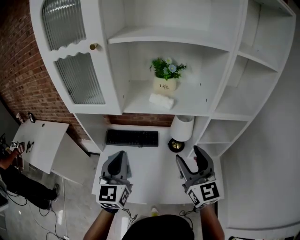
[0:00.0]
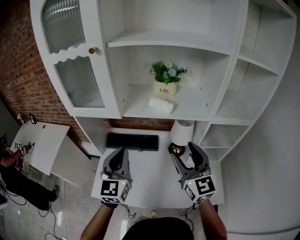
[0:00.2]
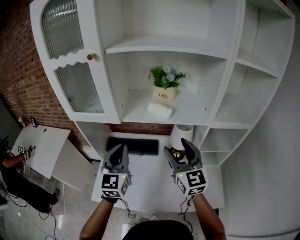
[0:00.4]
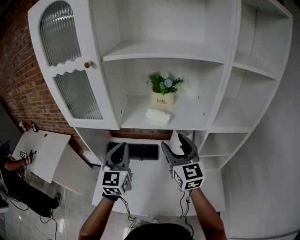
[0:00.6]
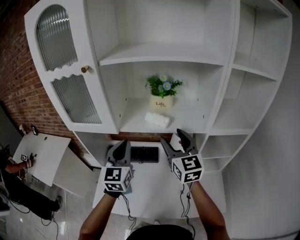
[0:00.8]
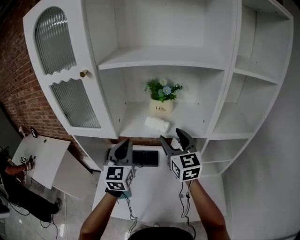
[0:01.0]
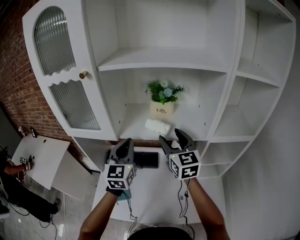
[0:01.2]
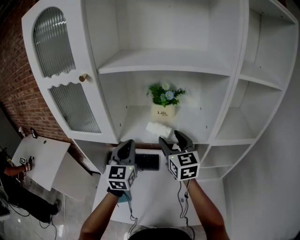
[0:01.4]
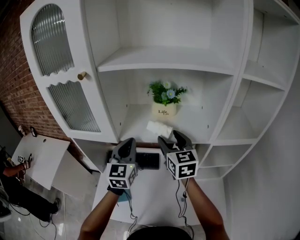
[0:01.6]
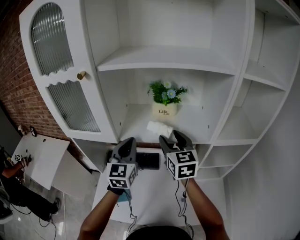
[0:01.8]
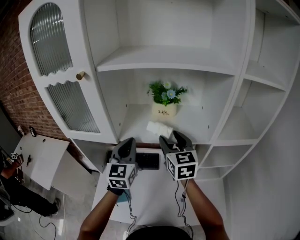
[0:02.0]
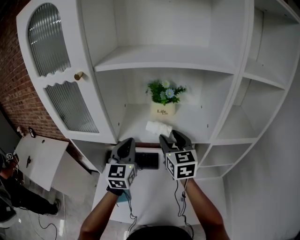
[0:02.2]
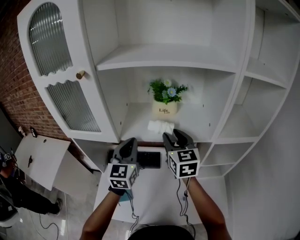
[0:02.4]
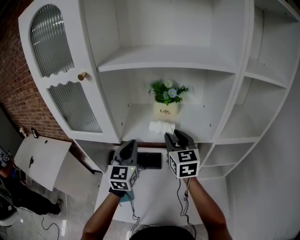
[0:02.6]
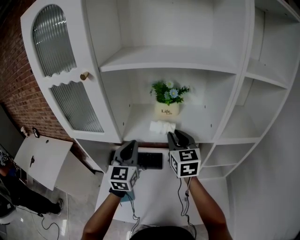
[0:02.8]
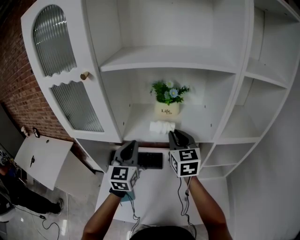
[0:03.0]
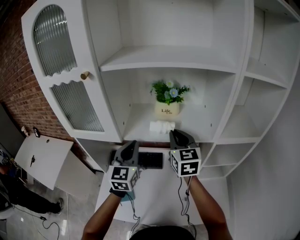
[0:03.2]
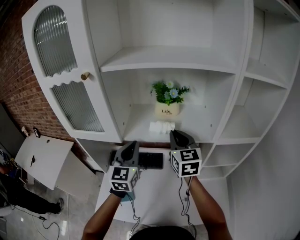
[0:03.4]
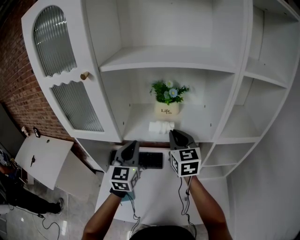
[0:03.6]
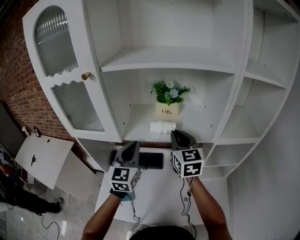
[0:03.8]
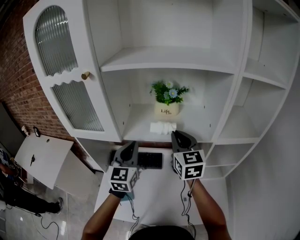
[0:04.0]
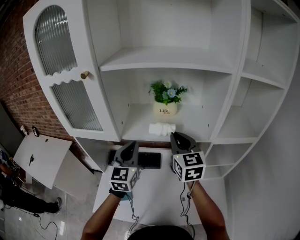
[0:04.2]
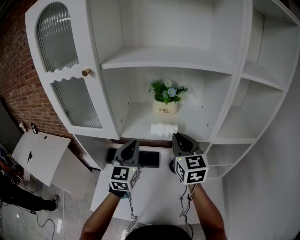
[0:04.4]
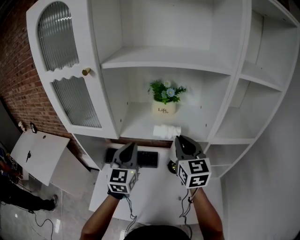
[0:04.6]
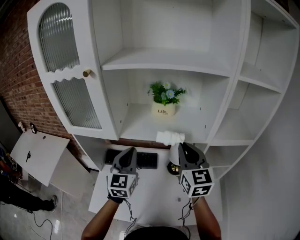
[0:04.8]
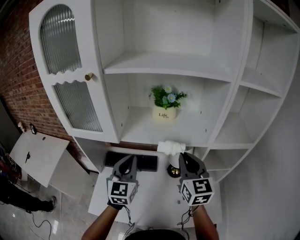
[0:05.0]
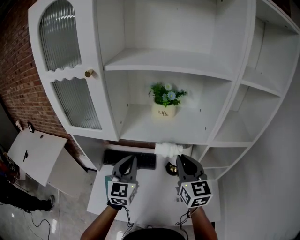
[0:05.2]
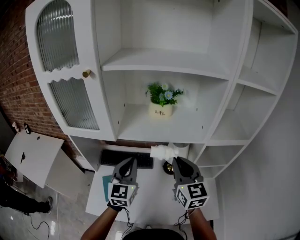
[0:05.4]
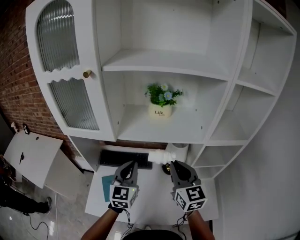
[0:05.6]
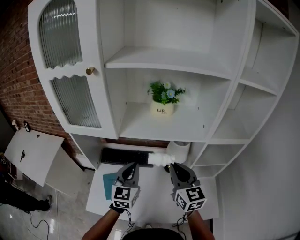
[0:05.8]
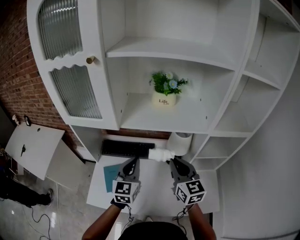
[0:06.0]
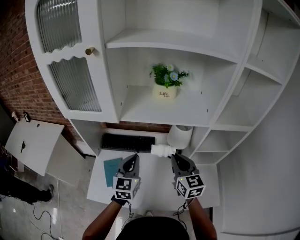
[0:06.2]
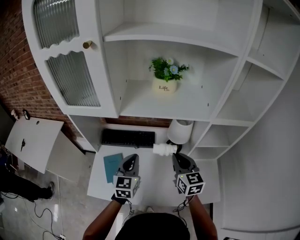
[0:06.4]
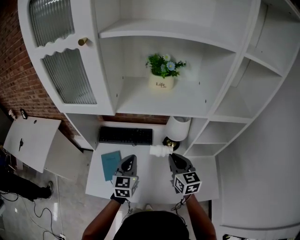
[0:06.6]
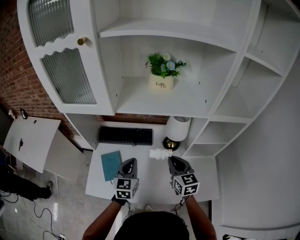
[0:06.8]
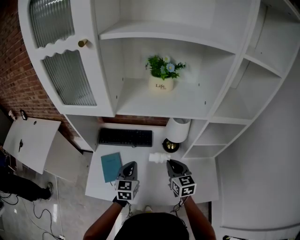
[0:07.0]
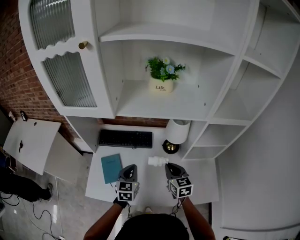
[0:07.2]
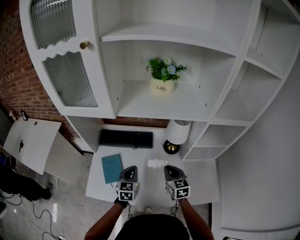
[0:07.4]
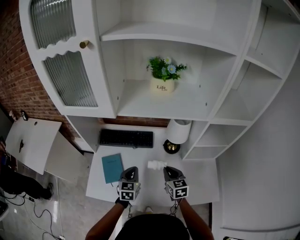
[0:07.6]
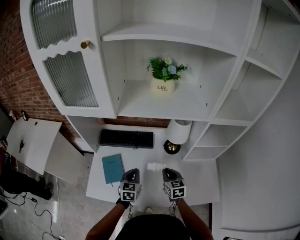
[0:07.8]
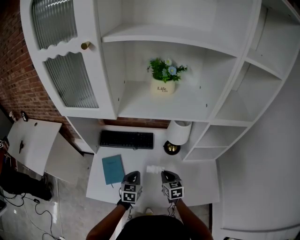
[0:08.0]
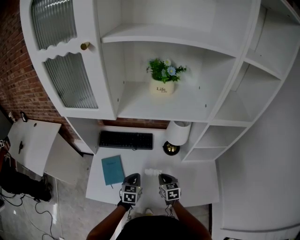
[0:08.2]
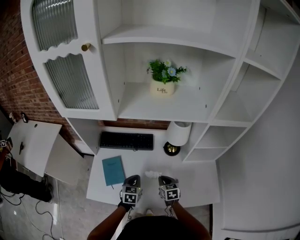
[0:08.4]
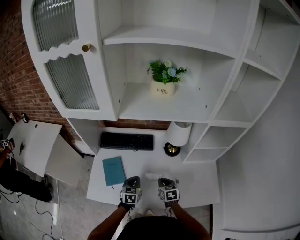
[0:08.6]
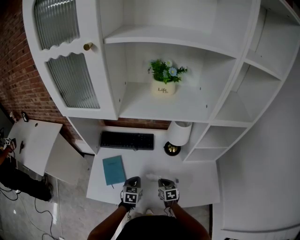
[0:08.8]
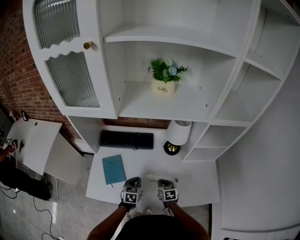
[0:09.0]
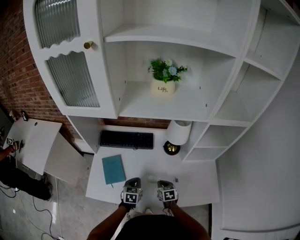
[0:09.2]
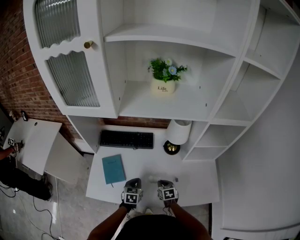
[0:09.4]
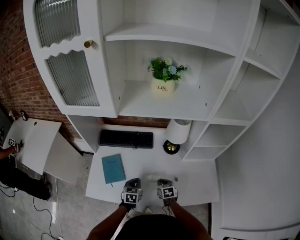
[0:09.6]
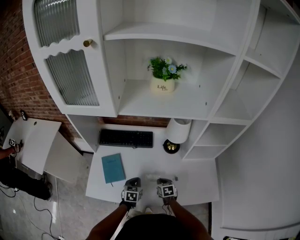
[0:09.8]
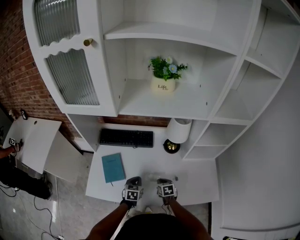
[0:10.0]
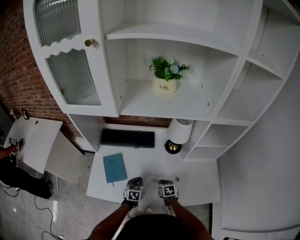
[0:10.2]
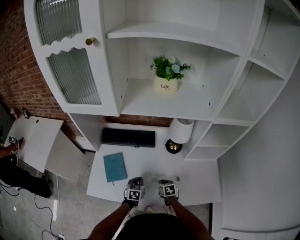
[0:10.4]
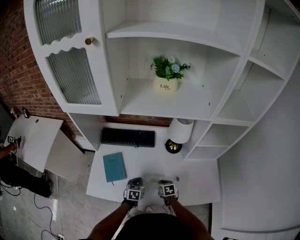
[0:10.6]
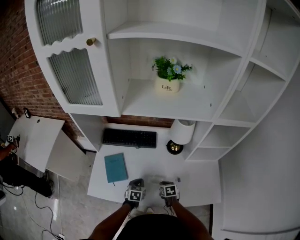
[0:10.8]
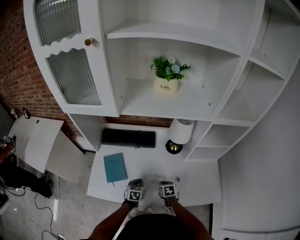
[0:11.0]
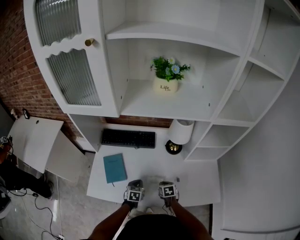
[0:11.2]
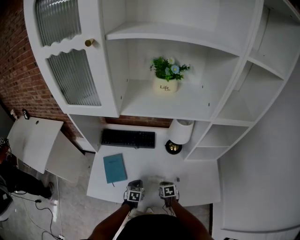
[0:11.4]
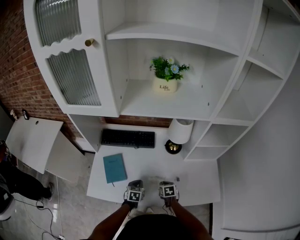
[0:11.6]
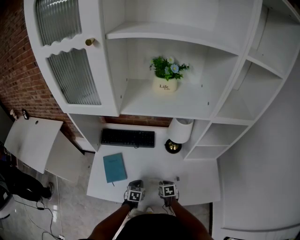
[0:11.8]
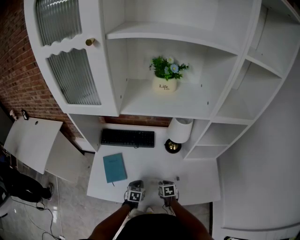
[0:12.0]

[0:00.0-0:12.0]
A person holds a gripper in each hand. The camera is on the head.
0:00.0 to 0:01.6: The grippers both shift forward by roughly 20 cm.
0:01.6 to 0:03.0: The right gripper closes.
0:03.0 to 0:04.4: The grippers stay close to where they were, moving slightly.
0:04.4 to 0:06.0: The grippers both shift downward and backward by roughly 15 cm.
0:06.0 to 0:07.6: The grippers both shift downward by roughly 20 cm. The right gripper rotates roughly 20 degrees.
0:07.6 to 0:09.0: Both grippers move downward, some 10 cm.
0:09.0 to 0:10.4: The right gripper is displaced downward by about 5 cm.
0:10.4 to 0:12.0: The grippers stay close to where they were, moving slightly.

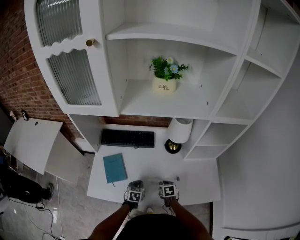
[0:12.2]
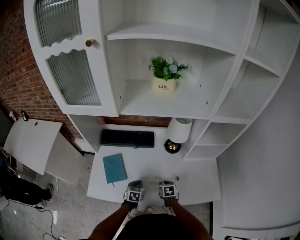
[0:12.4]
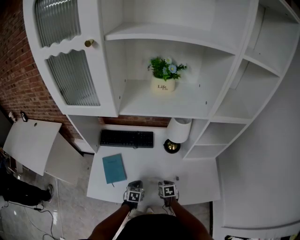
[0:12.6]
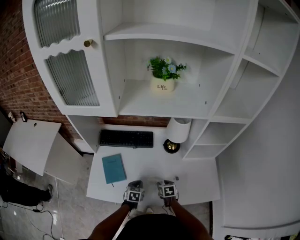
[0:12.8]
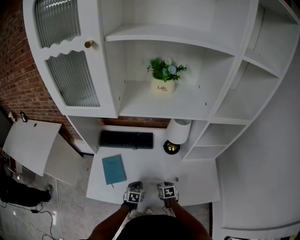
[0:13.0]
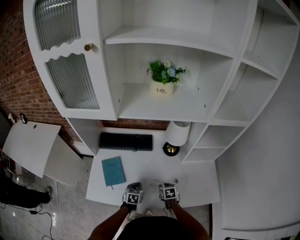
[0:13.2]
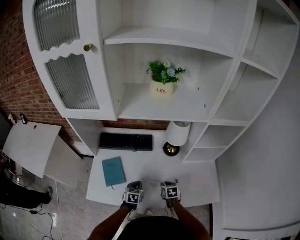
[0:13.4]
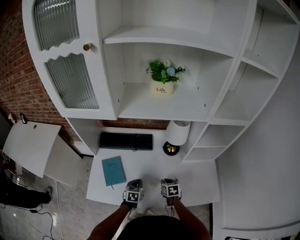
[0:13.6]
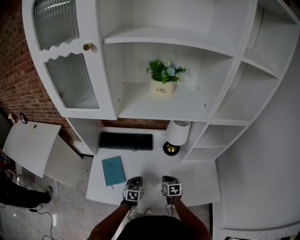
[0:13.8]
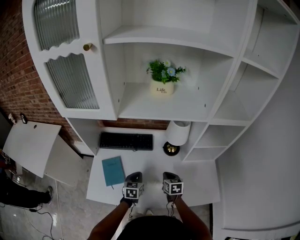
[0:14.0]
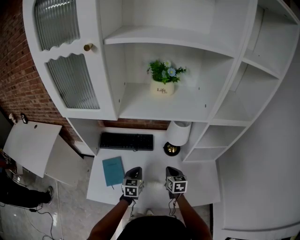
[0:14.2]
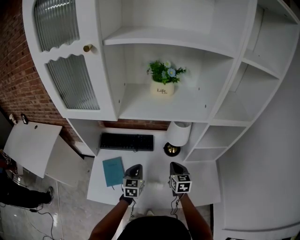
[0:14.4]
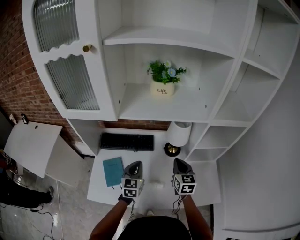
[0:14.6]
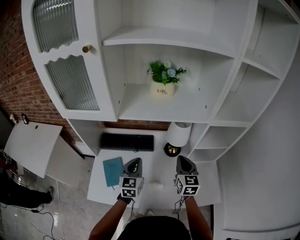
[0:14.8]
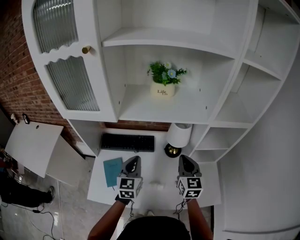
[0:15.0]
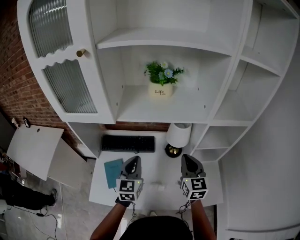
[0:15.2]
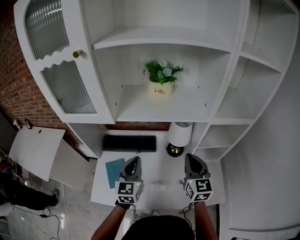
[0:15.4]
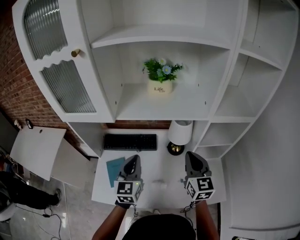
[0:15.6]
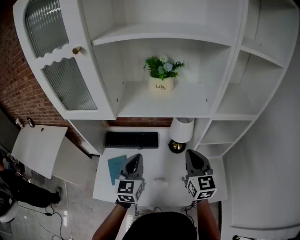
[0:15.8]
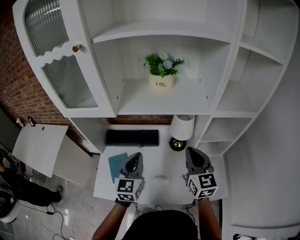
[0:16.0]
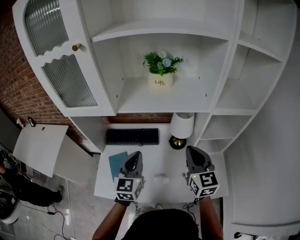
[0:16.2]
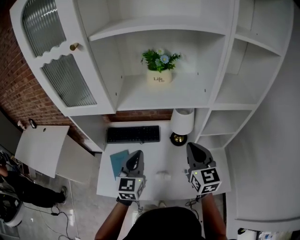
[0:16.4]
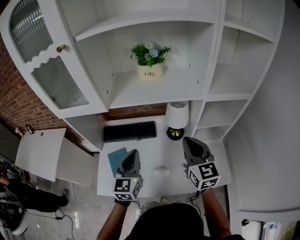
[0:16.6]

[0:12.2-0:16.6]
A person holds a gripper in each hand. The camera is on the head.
0:12.2 to 0:13.6: The right gripper shifts by about 5 cm, and opens, then closes again.
0:13.6 to 0:15.2: Both grippers travel together upward, about 30 cm. The left gripper tilts its fingers about 30 degrees upward, while the right gripper angles its fingers upward, by approximately 40 degrees.
0:15.2 to 0:16.6: The right gripper changes place by some 5 cm. The left gripper changes place by roughly 5 cm.

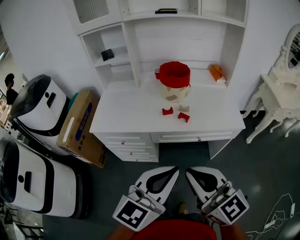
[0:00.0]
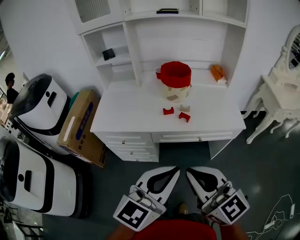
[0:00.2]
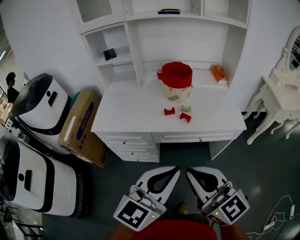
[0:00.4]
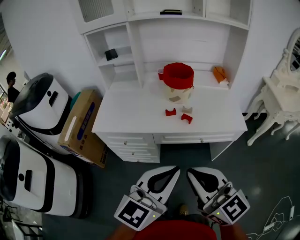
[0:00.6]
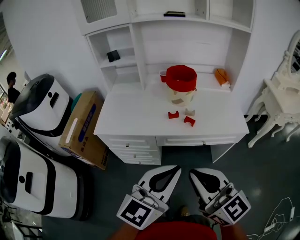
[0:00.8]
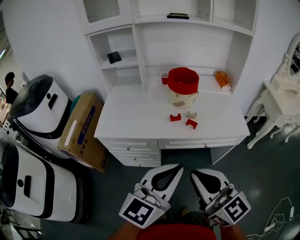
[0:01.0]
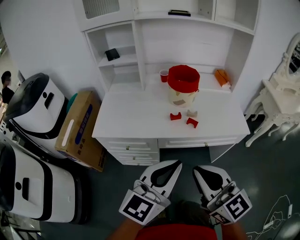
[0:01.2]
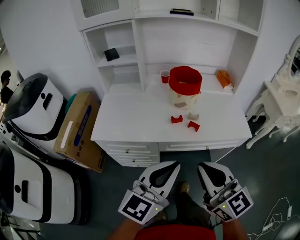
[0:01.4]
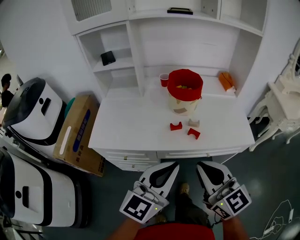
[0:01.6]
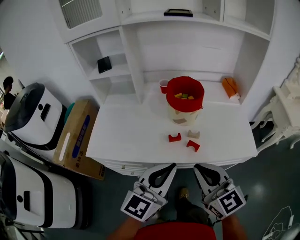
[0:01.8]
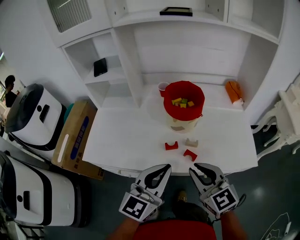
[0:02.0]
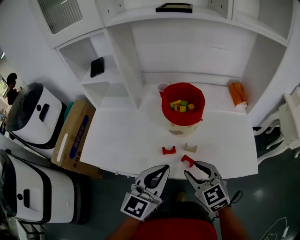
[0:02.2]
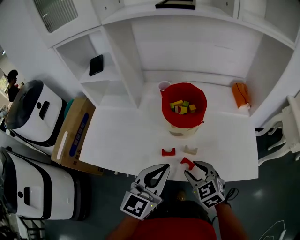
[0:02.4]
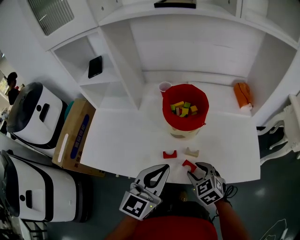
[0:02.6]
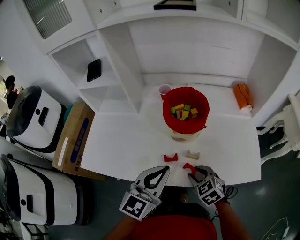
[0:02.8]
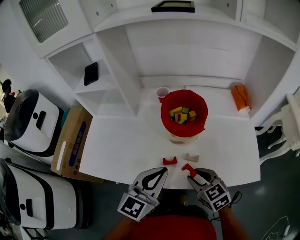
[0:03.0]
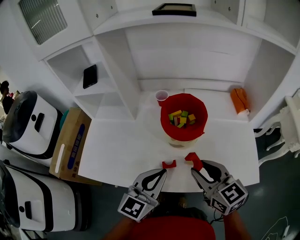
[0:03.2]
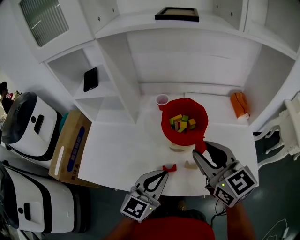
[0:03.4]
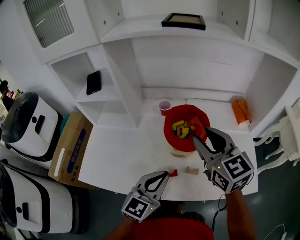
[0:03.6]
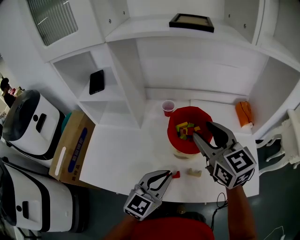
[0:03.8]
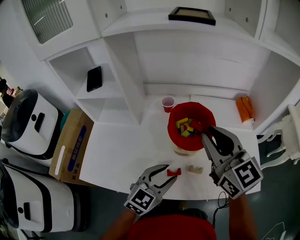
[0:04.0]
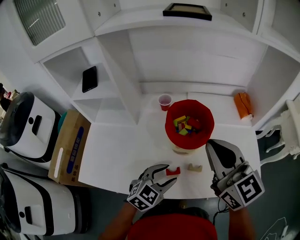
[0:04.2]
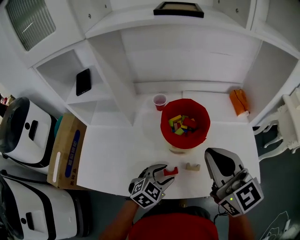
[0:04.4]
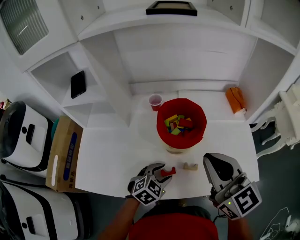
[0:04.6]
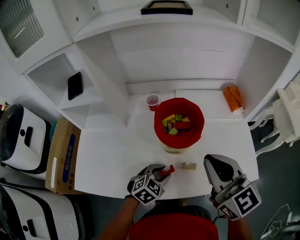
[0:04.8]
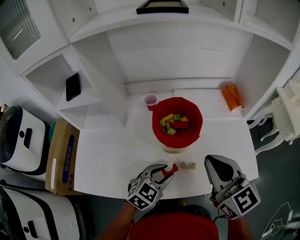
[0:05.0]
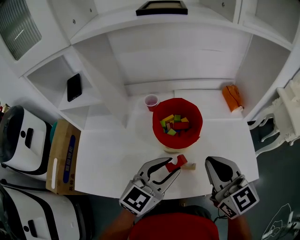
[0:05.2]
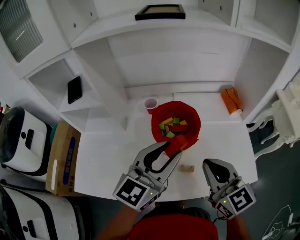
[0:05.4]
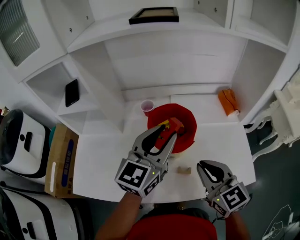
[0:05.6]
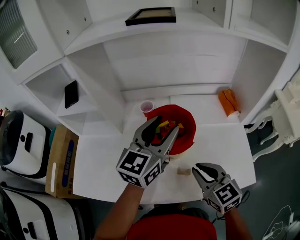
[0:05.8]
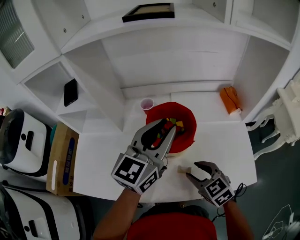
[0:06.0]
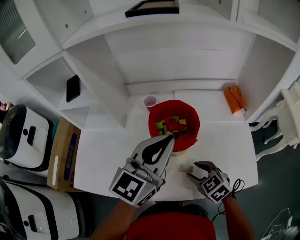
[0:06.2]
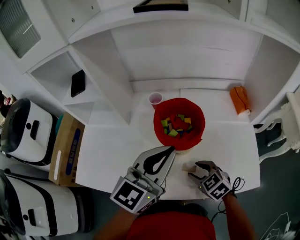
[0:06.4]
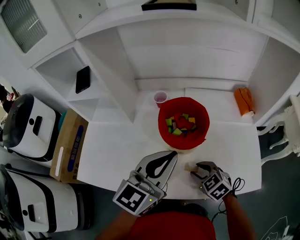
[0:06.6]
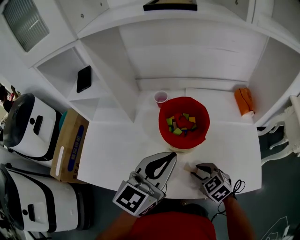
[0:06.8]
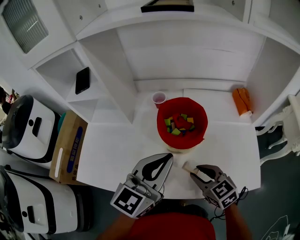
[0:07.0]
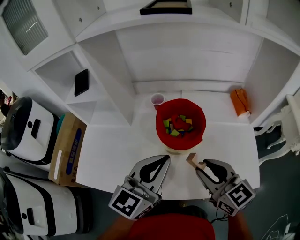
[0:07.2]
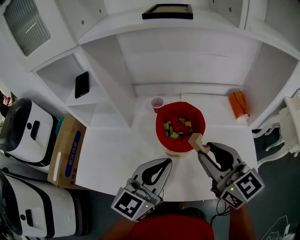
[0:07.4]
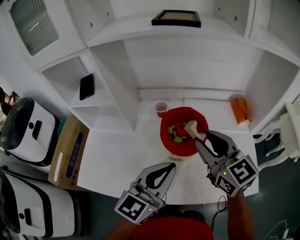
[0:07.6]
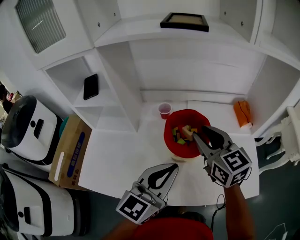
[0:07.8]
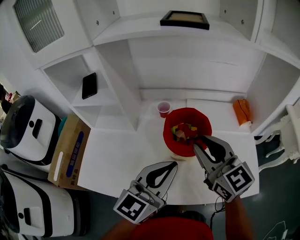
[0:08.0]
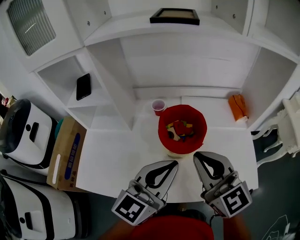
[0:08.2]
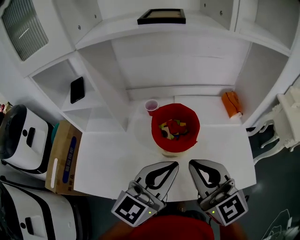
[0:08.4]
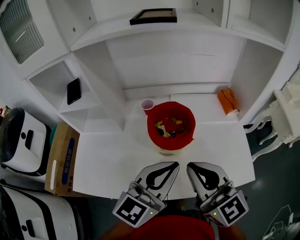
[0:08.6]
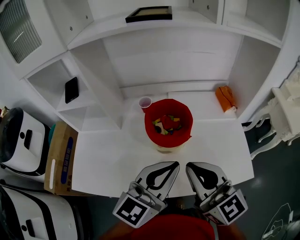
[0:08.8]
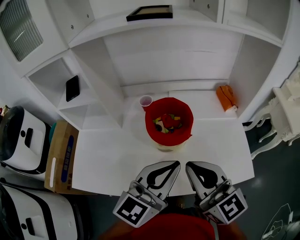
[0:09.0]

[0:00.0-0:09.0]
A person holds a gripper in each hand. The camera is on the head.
0:00.0 to 0:01.6: The grippers both shift forward by some 15 cm.
0:01.6 to 0:03.0: The left gripper moves forward, approximately 20 cm; the right gripper travels forward and downward by roughly 25 cm, angles its fingers downward, by roughly 30 degrees, and opens.
0:03.0 to 0:04.4: The right gripper travels upward by some 25 cm, angles its fingers upward, by some 30 degrees, and closes up. The left gripper moves downward, some 15 cm, angles its fingers downward, by about 30 degrees, and opens up.
0:04.4 to 0:06.0: The left gripper is displaced upward and forward by roughly 30 cm, angles its fingers upward, by roughly 40 degrees, and closes. The right gripper travels downward by roughly 20 cm, points its fingers about 30 degrees further downward, and opens up.
0:06.0 to 0:07.6: The right gripper moves upward and forward, roughly 20 cm, and changes its angle by about 30 degrees; the left gripper goes about 10 cm backward, and closes its fingers.
0:07.6 to 0:09.0: The left gripper ends up some 5 cm from where it was, while the right gripper moves backward, approximately 10 cm, and closes up.
